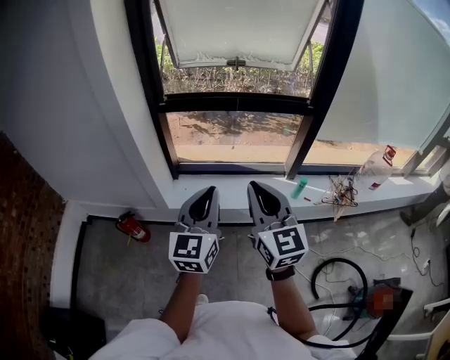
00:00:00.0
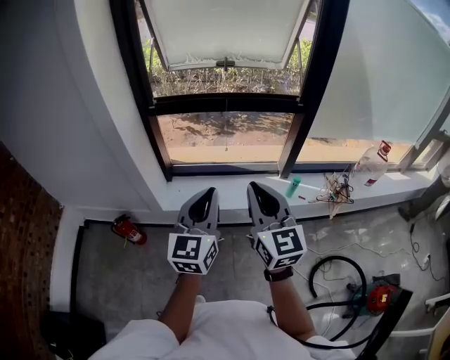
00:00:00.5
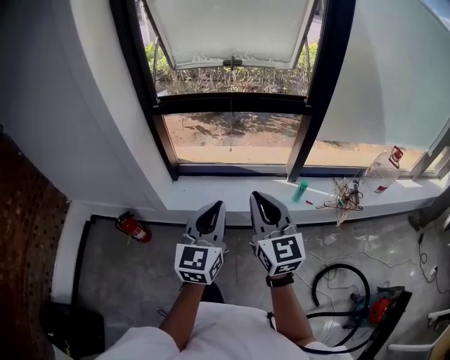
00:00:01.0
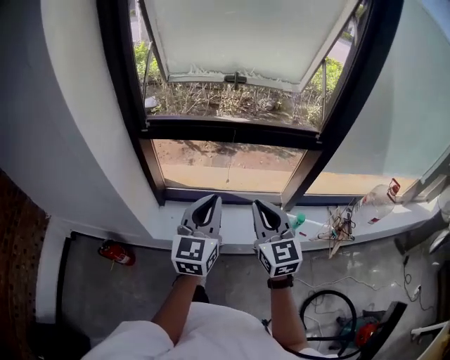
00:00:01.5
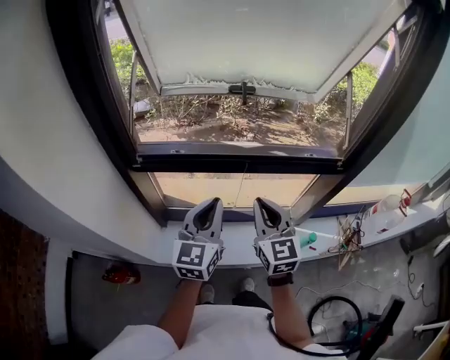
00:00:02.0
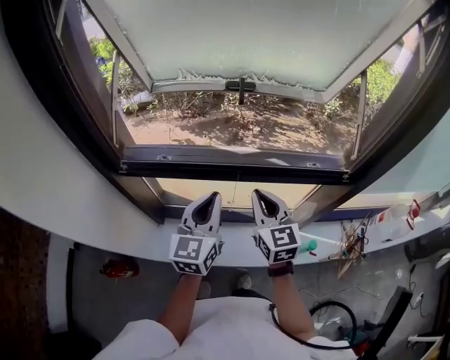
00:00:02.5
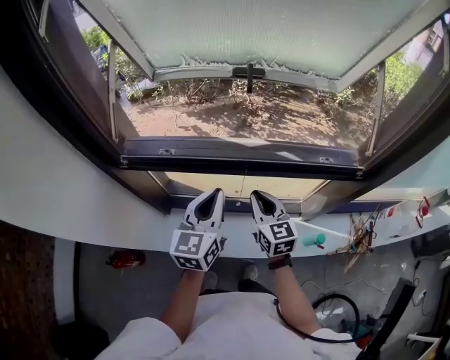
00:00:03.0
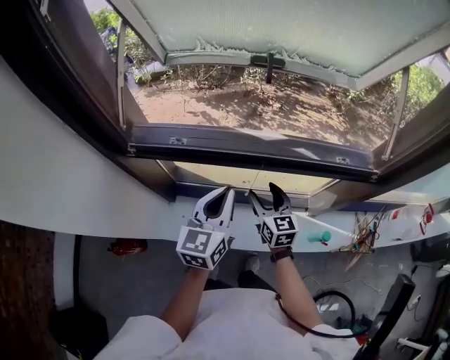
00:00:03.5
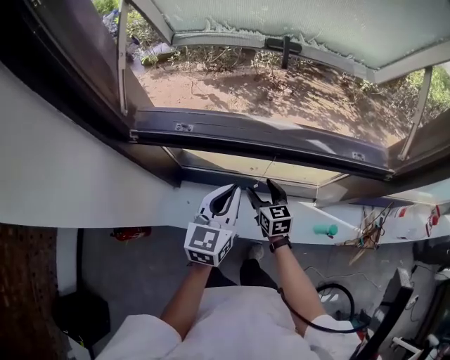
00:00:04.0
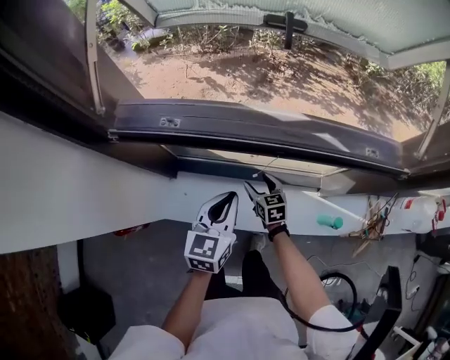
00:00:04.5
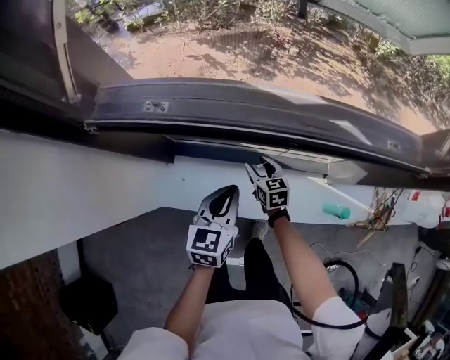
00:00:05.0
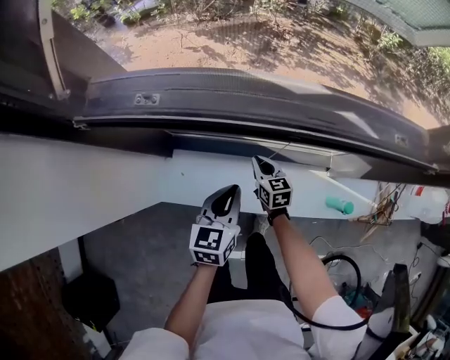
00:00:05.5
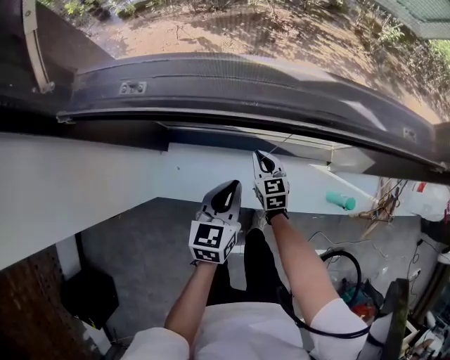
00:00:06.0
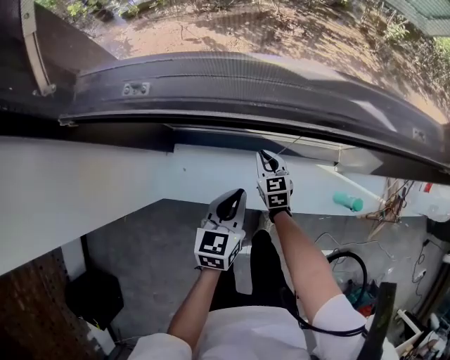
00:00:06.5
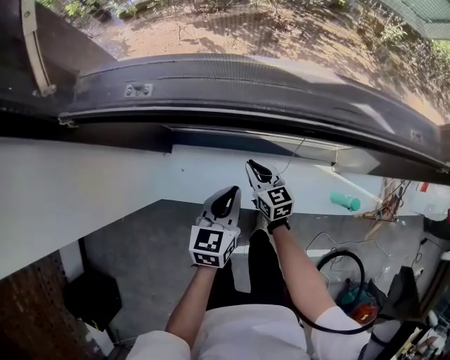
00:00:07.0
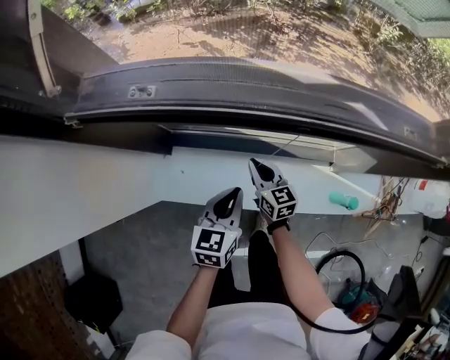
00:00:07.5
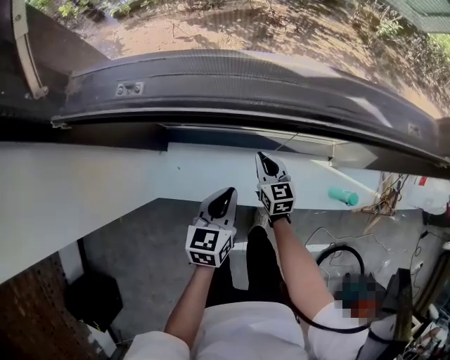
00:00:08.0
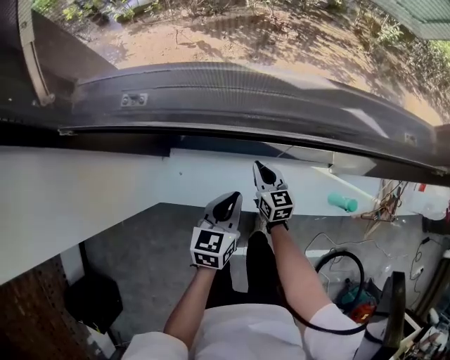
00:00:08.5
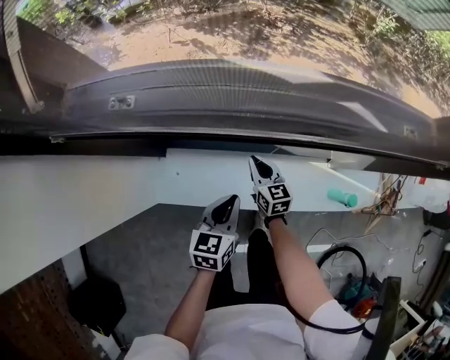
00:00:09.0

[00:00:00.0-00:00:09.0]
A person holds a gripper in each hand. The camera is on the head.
00:00:00.0 to 00:00:02.0: Both grippers are carried forward, about 40 cm.
00:00:02.0 to 00:00:04.5: The left gripper shifts approximately 20 cm downward and forward, and swivels some 20 degrees; the right gripper moves downward and forward, roughly 40 cm, tips its fingers downward by some 30 degrees, and opens.
00:00:04.5 to 00:00:07.0: The left gripper heads downward, covering approximately 15 cm; the right gripper moves downward, some 5 cm, and closes.
00:00:07.0 to 00:00:09.0: There are only small adjustments of the grippers.

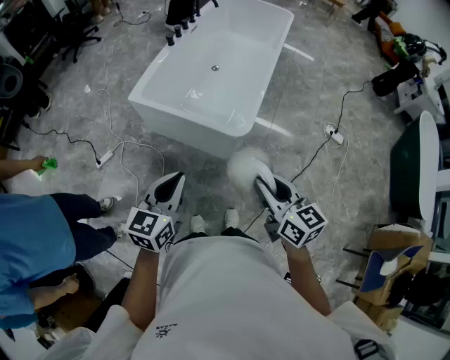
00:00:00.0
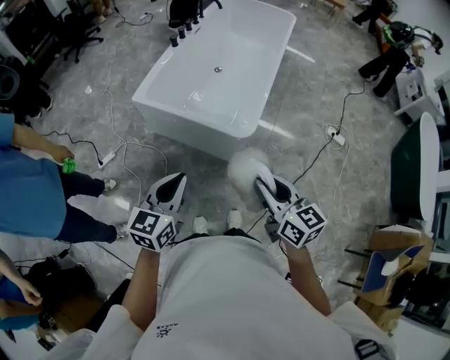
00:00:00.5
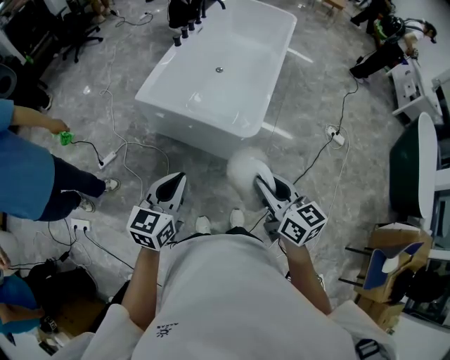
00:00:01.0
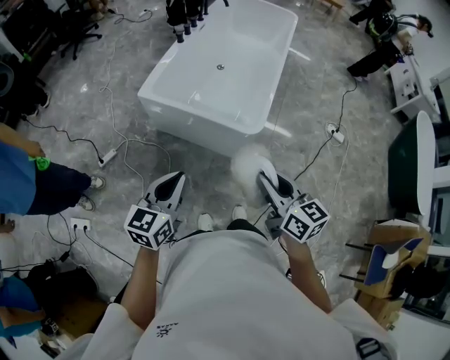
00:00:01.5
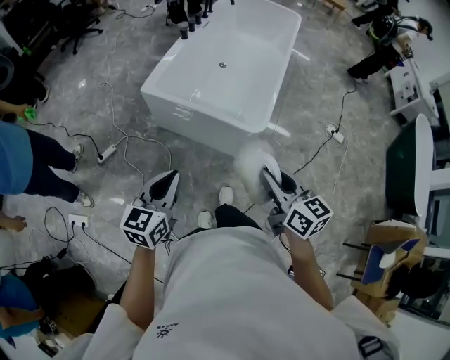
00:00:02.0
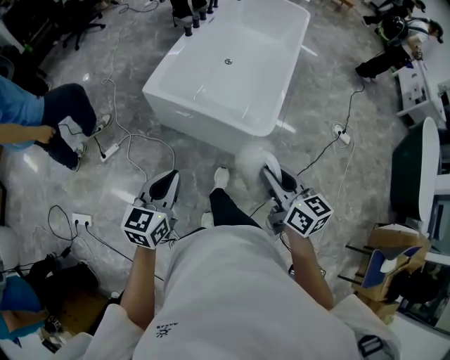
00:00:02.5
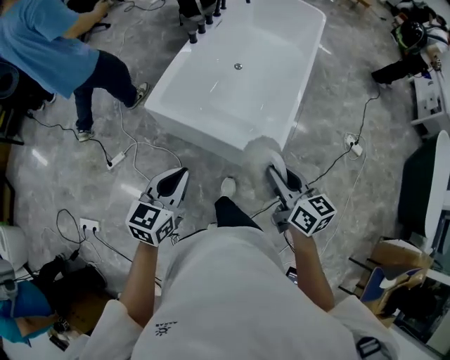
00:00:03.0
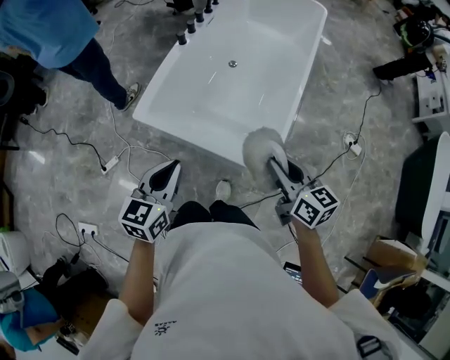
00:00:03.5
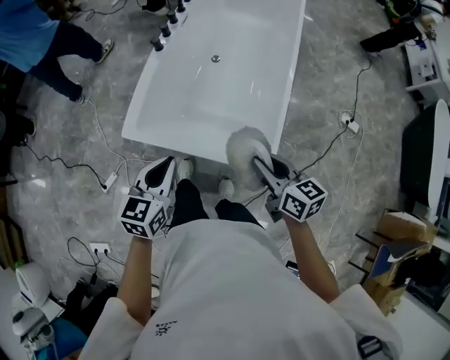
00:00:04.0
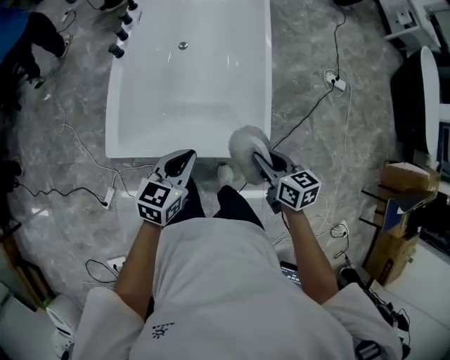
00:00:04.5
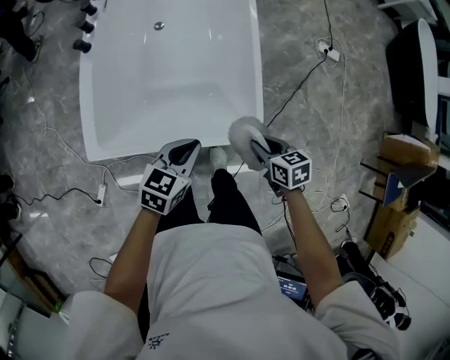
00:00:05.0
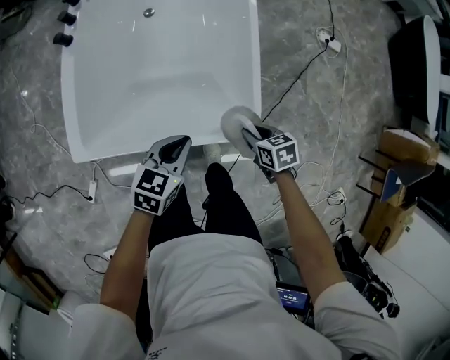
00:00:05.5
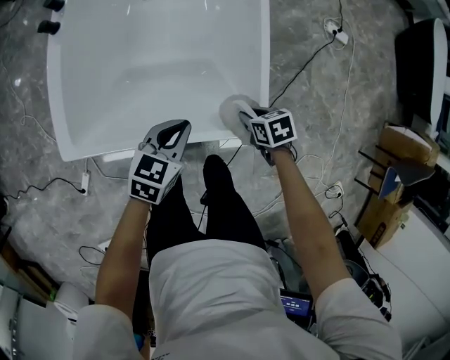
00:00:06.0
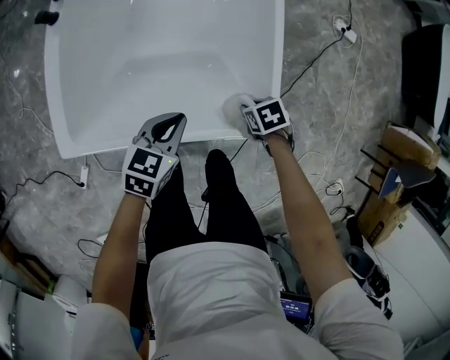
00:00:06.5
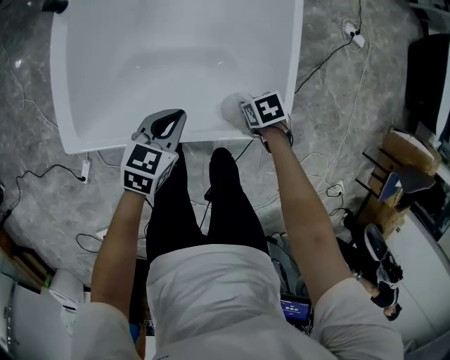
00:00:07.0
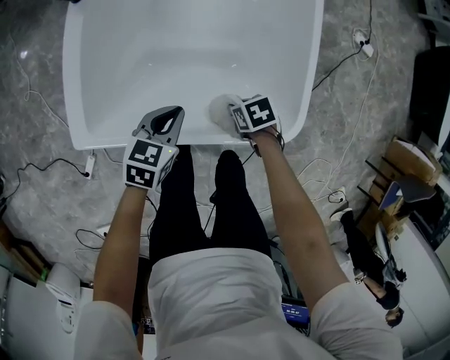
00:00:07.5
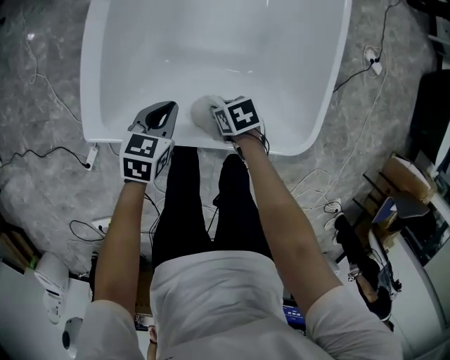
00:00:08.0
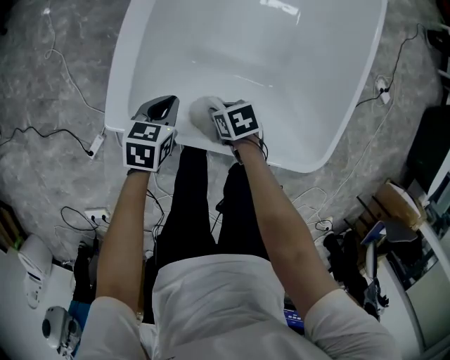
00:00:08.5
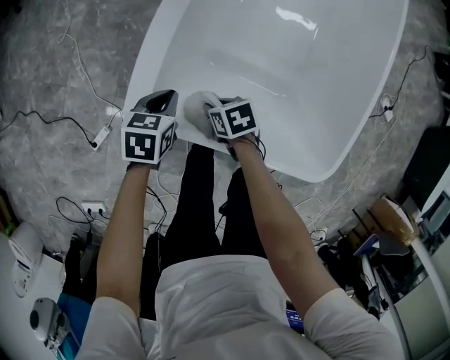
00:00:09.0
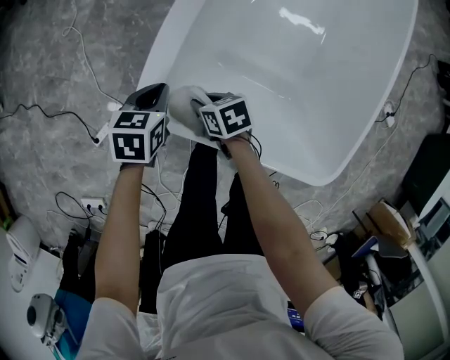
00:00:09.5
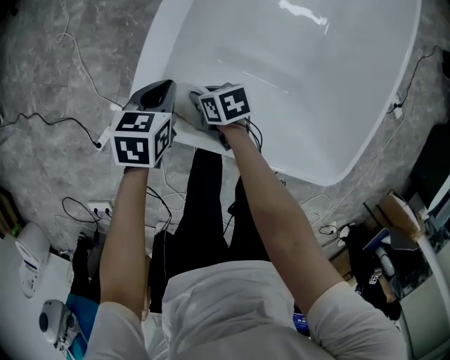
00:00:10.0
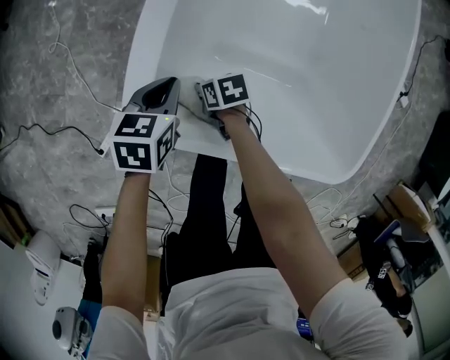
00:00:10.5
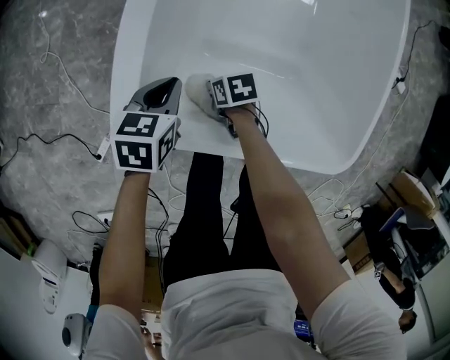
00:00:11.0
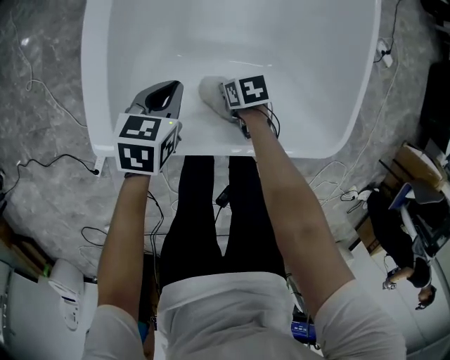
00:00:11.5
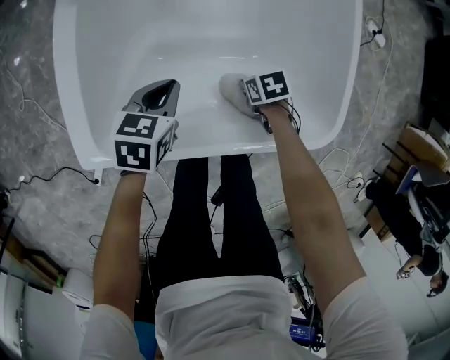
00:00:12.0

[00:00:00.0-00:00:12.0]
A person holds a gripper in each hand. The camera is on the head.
00:00:00.0 to 00:00:02.0: Both grippers move to the left, roughly 10 cm.
00:00:02.0 to 00:00:04.0: The two grippers go roughly 35 cm forward.
00:00:04.0 to 00:00:06.0: The right gripper goes about 35 cm downward, and points its fingers roughly 40 degrees further downward. Meanwhile the left gripper goes about 30 cm downward and to the right, and changes its angle by approximately 40 degrees.
00:00:06.0 to 00:00:08.0: The right gripper shifts by approximately 25 cm. Meanwhile the left gripper changes place by roughly 20 cm.
00:00:08.0 to 00:00:10.0: The right gripper ends up roughly 25 cm from where it was; the left gripper shifts by about 20 cm, and changes its angle by approximately 20 degrees.
00:00:10.0 to 00:00:12.0: The left gripper shifts by roughly 20 cm, and changes its angle by roughly 30 degrees; the right gripper shifts by some 35 cm, and swivels some 30 degrees.

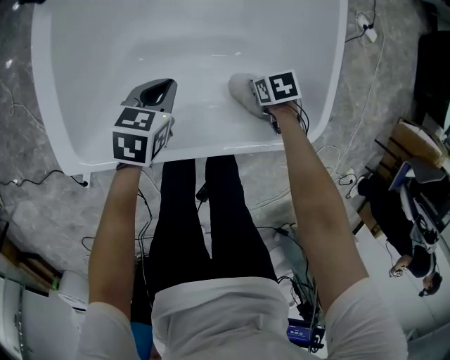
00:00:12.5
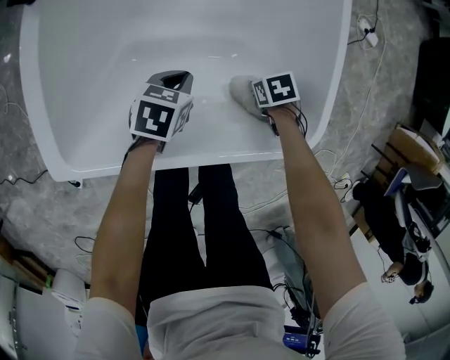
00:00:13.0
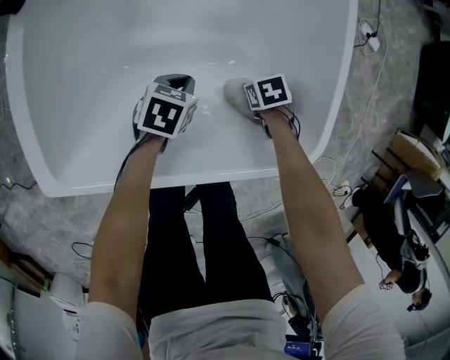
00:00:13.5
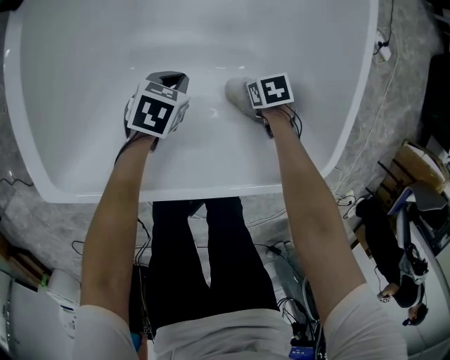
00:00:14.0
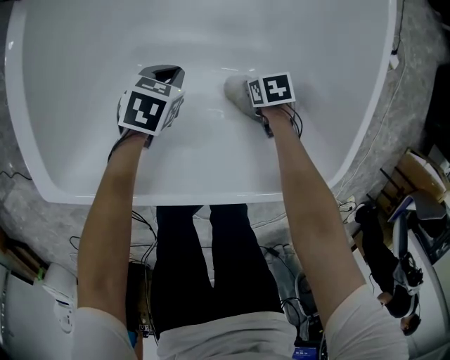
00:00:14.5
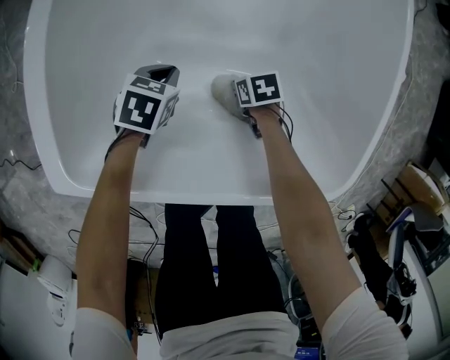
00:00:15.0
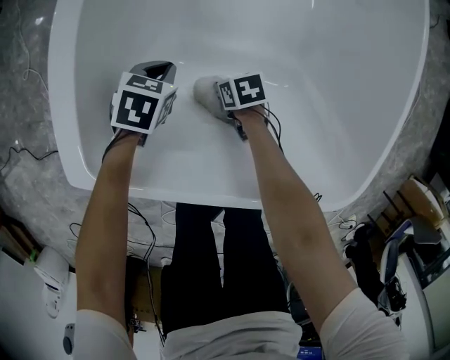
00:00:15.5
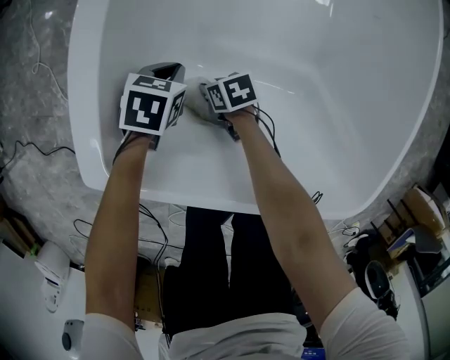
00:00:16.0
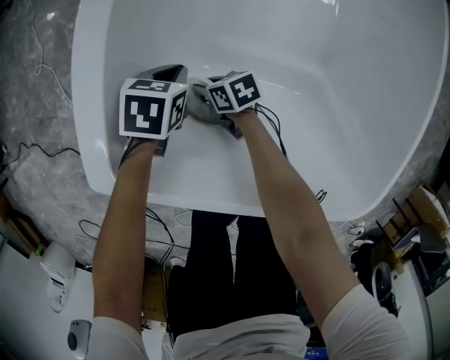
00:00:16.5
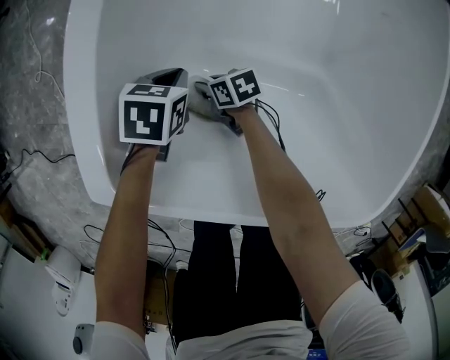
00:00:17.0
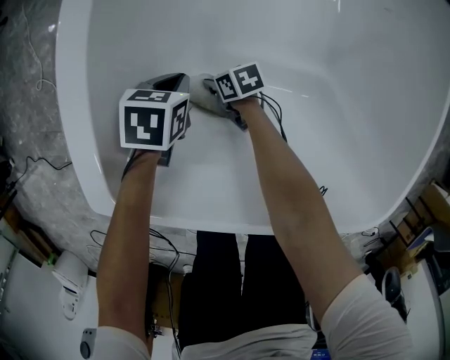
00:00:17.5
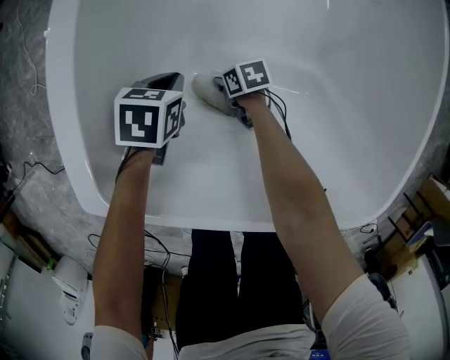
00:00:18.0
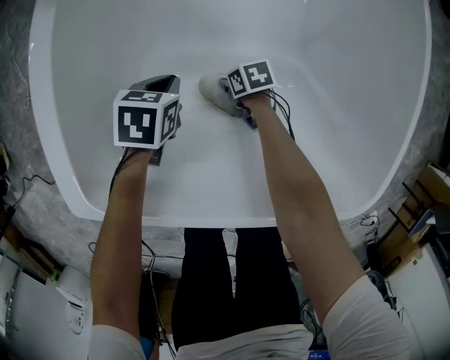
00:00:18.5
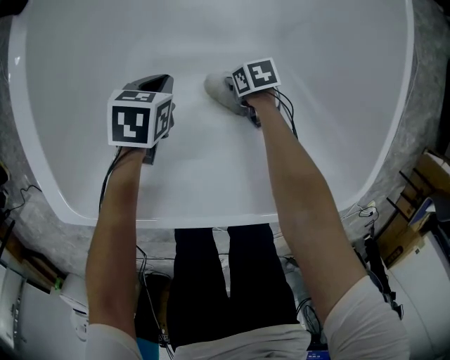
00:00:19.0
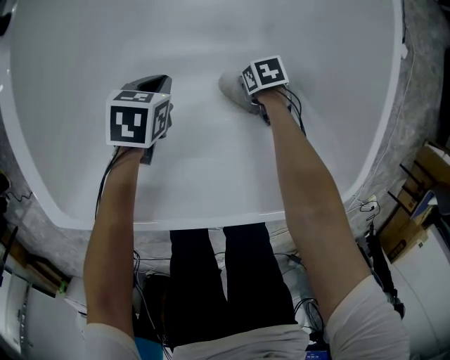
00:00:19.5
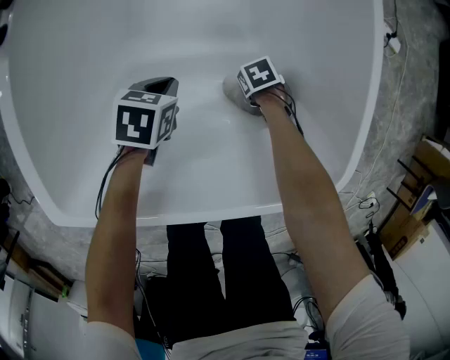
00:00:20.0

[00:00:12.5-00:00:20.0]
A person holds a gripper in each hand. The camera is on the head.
00:00:12.5 to 00:00:14.5: Both grippers travel together downward, some 15 cm.
00:00:14.5 to 00:00:16.5: The left gripper ends up approximately 20 cm from where it was. The right gripper shifts by about 35 cm, and tips its fingers upward by roughly 30 degrees.
00:00:16.5 to 00:00:18.0: The right gripper shifts about 10 cm downward.
00:00:18.0 to 00:00:20.0: The left gripper moves about 20 cm; the right gripper shifts by approximately 30 cm, and swivels about 30 degrees.
